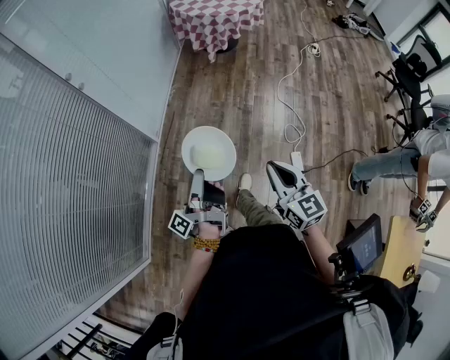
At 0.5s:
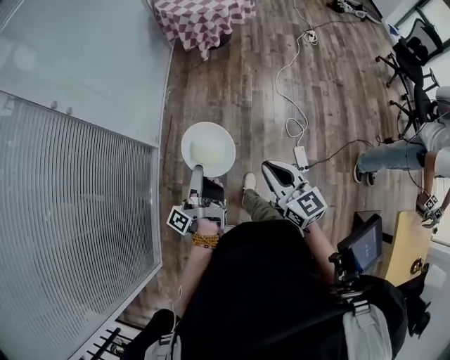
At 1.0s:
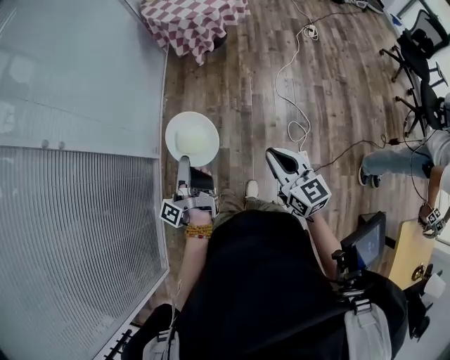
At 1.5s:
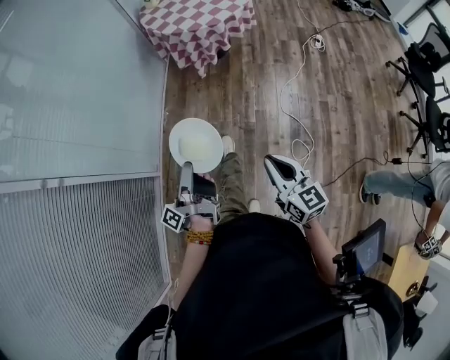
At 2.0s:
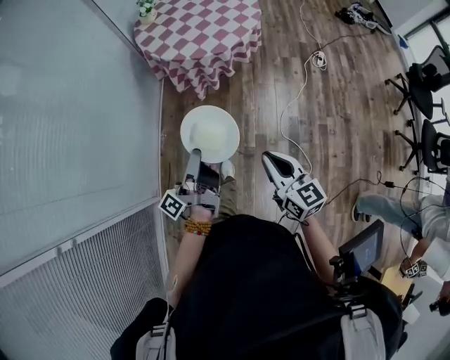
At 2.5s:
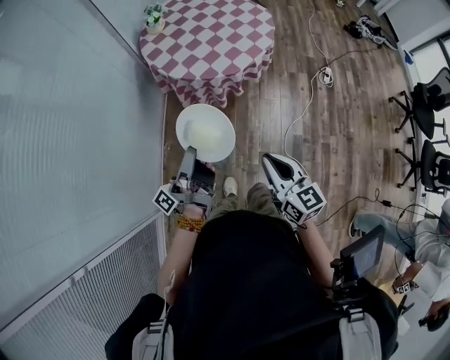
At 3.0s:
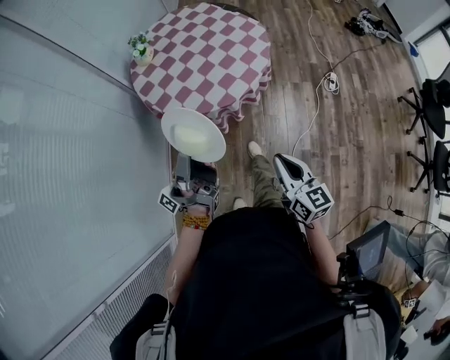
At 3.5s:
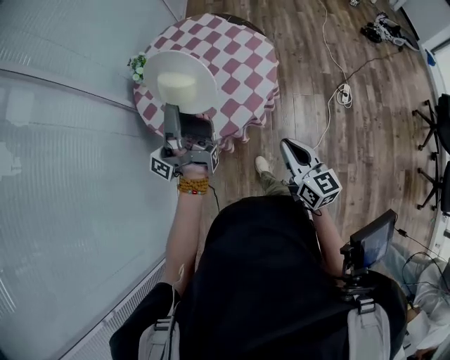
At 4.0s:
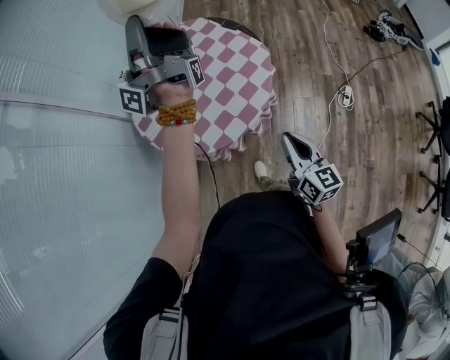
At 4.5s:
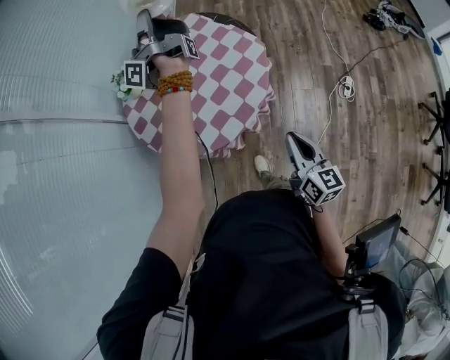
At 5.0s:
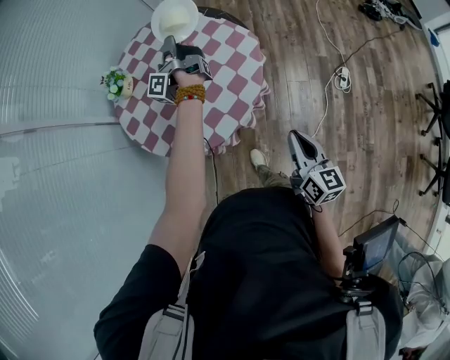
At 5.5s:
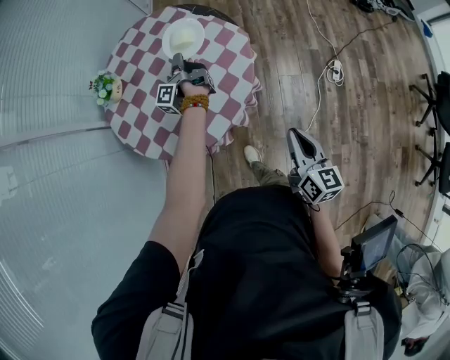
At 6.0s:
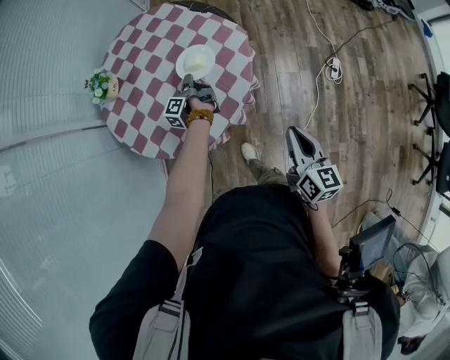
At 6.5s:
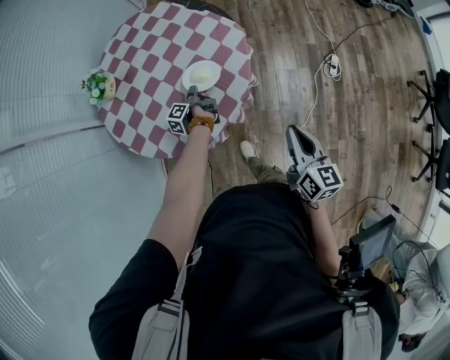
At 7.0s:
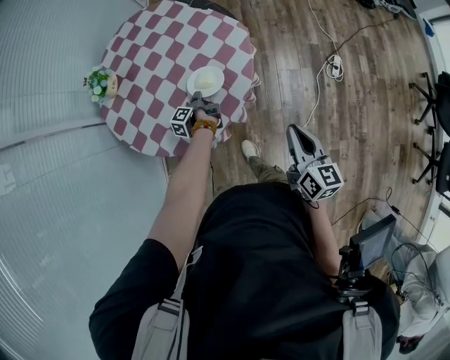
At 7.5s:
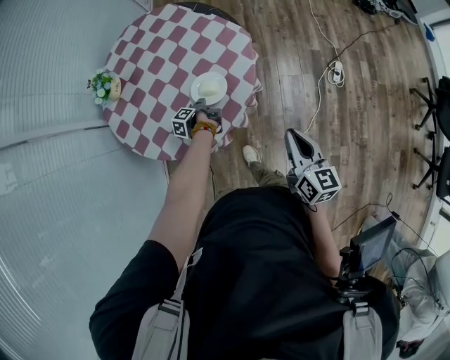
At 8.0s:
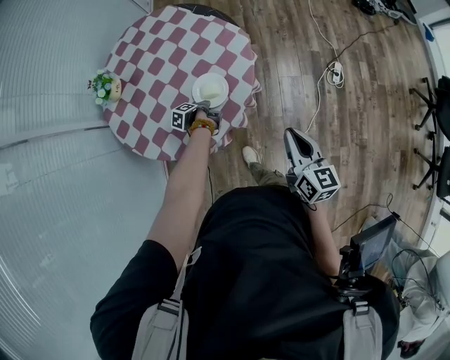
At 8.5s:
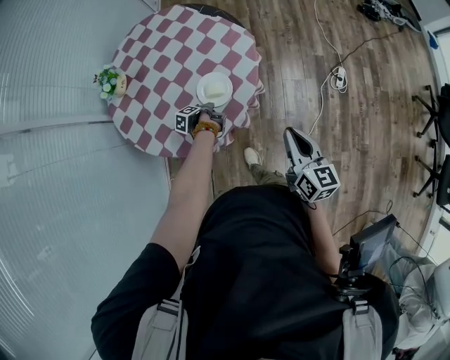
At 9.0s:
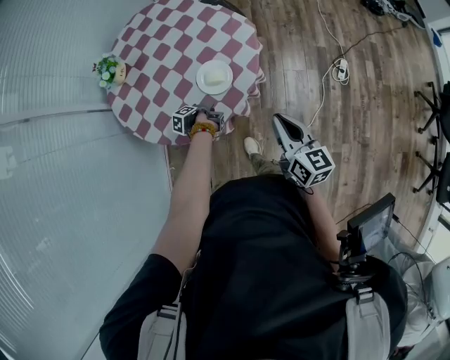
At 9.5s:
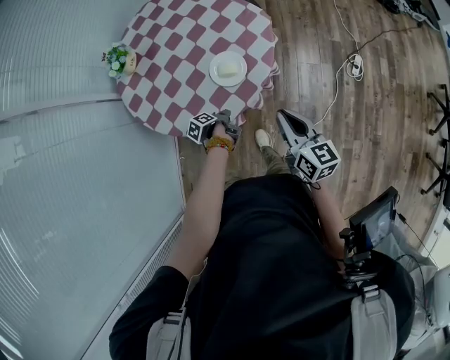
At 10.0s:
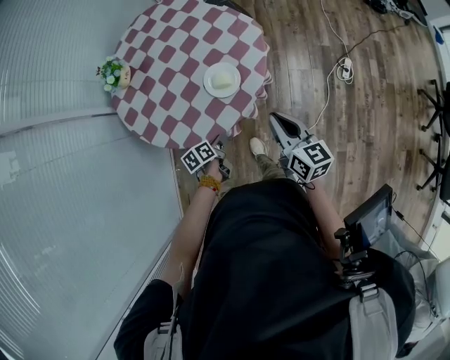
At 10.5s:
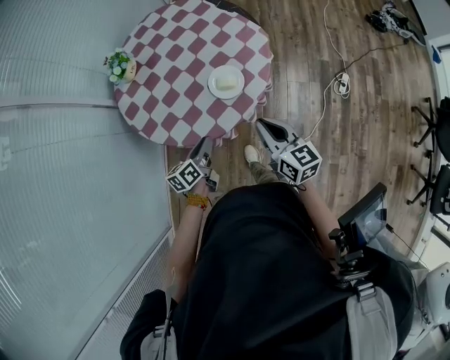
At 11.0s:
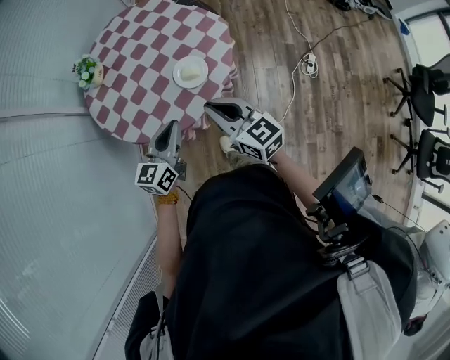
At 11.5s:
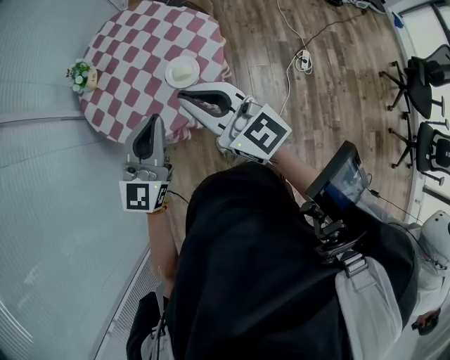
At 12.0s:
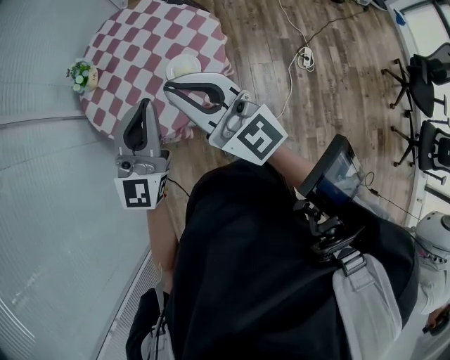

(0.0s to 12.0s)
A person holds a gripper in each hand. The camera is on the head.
0.0s - 2.0s: The right gripper changes place by about 60 cm.
2.0s - 4.0s: The right gripper ends up roughly 60 cm from where it was.
4.0s - 6.0s: The right gripper changes place by some 10 cm.
8.0s - 10.0s: The right gripper ends up some 10 cm from where it was.
10.0s - 12.0s: The right gripper goes about 25 cm upward, and angles its fingers upward, by approximately 30 degrees.

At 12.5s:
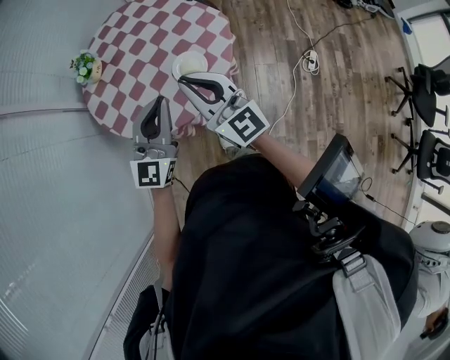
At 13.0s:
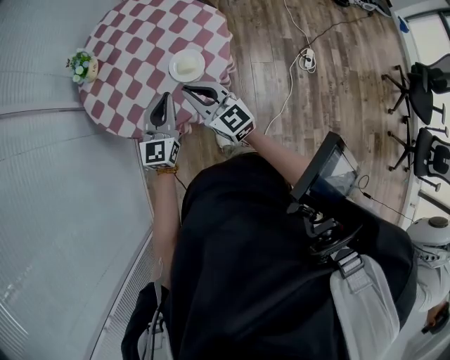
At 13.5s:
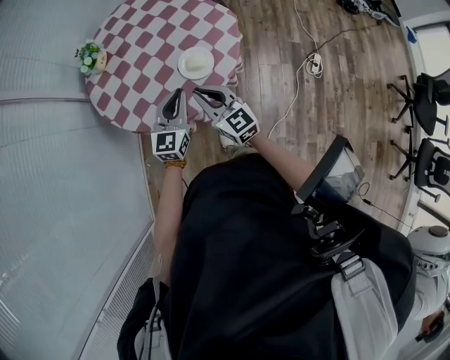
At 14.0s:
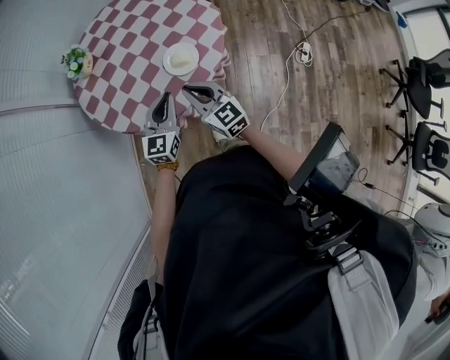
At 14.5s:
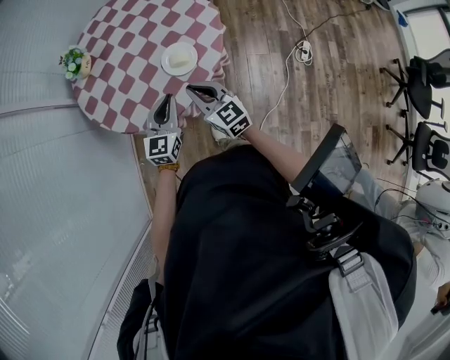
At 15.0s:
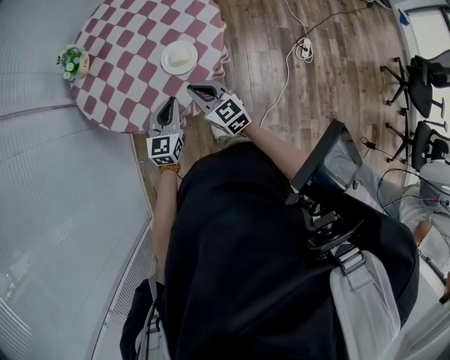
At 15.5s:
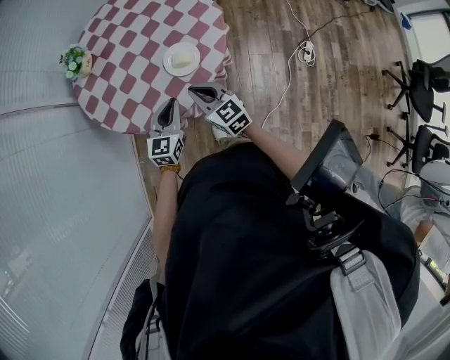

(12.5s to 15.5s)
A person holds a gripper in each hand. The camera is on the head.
12.5s - 14.0s: The right gripper travels downward by approximately 15 cm.

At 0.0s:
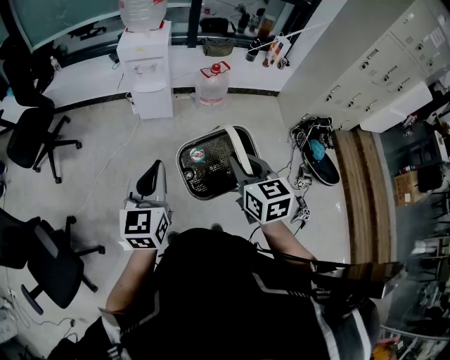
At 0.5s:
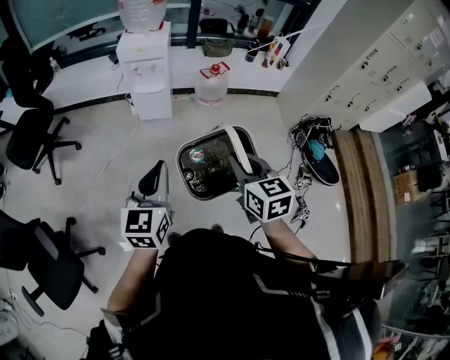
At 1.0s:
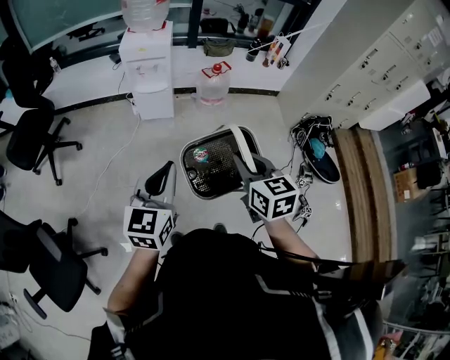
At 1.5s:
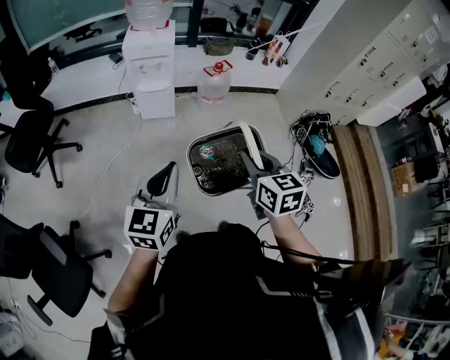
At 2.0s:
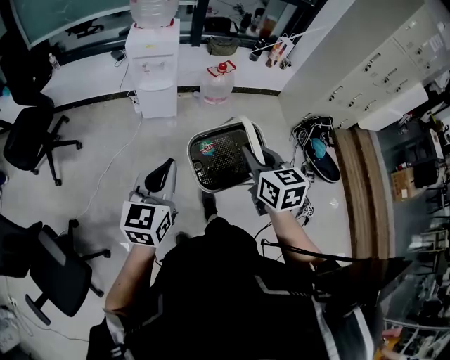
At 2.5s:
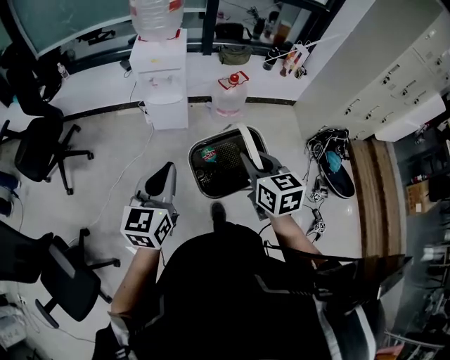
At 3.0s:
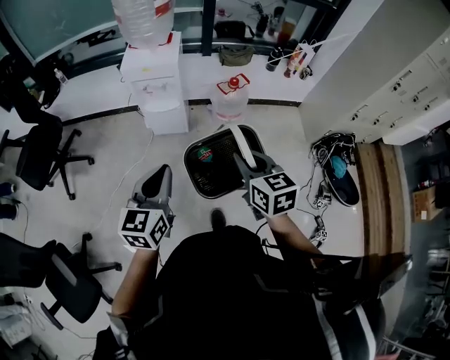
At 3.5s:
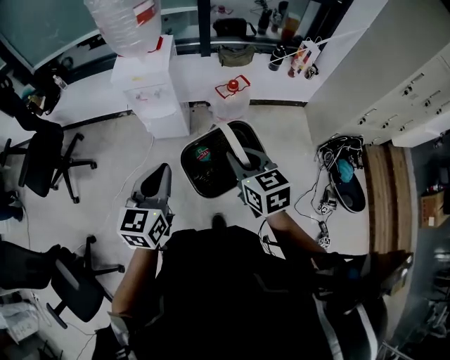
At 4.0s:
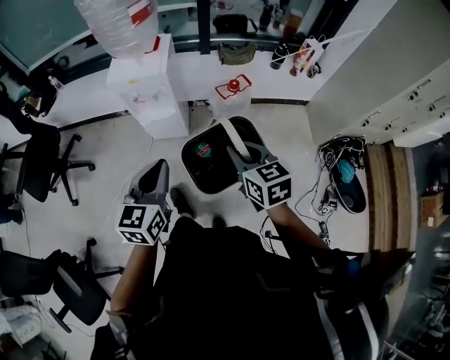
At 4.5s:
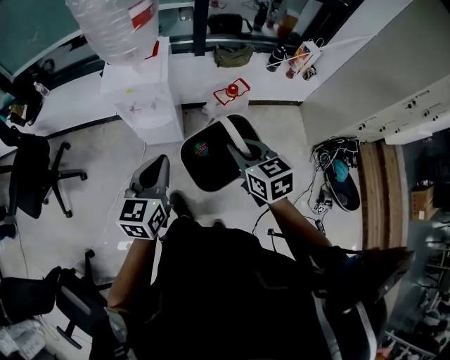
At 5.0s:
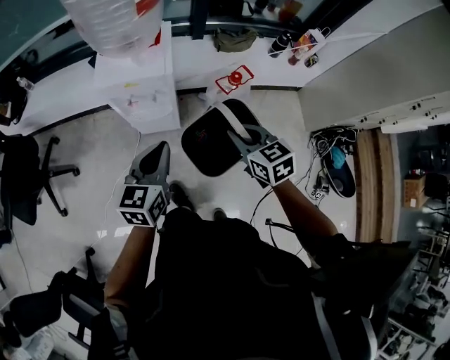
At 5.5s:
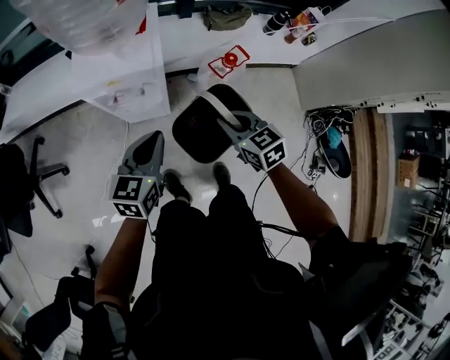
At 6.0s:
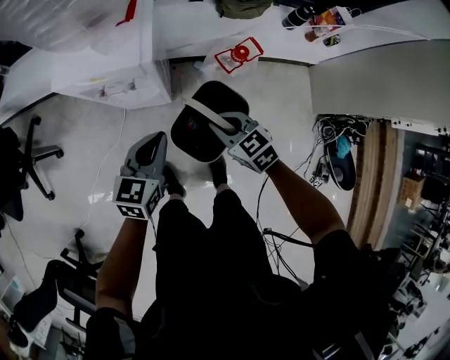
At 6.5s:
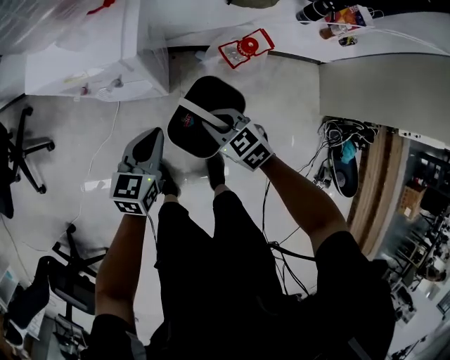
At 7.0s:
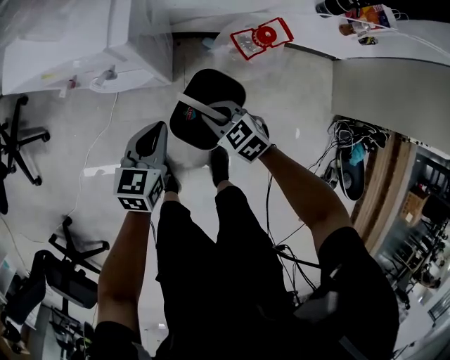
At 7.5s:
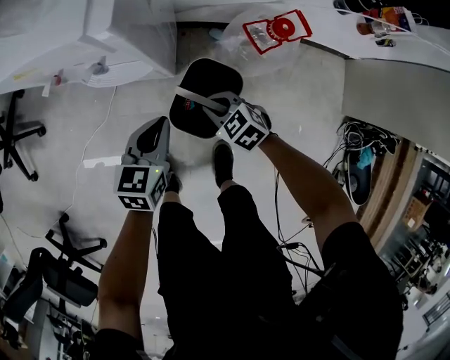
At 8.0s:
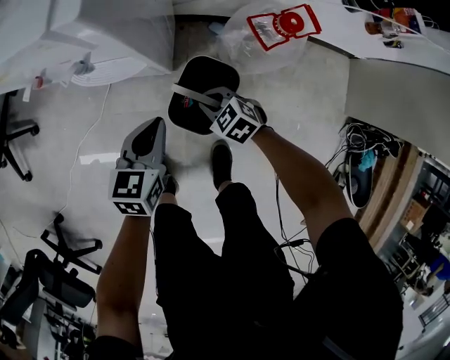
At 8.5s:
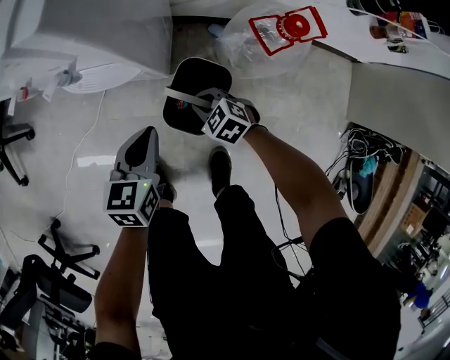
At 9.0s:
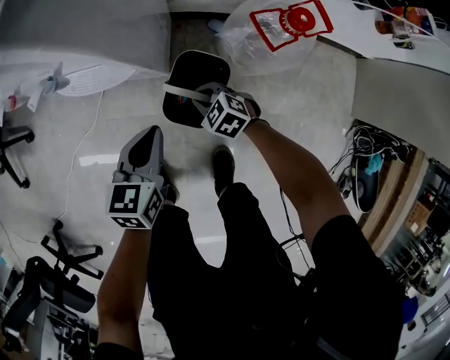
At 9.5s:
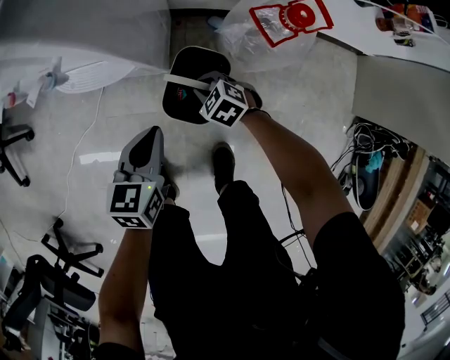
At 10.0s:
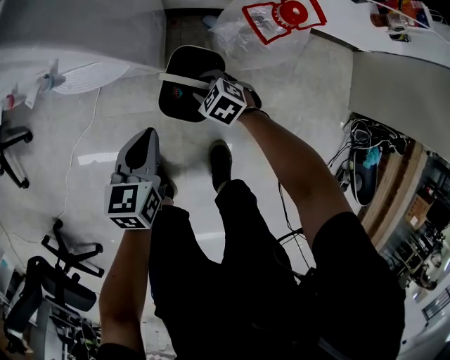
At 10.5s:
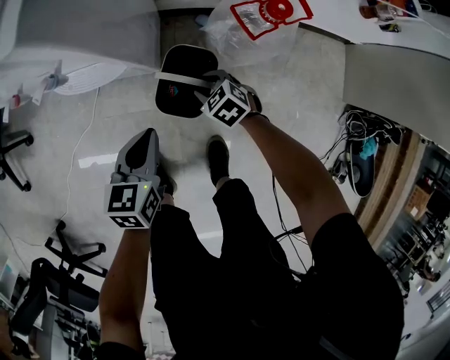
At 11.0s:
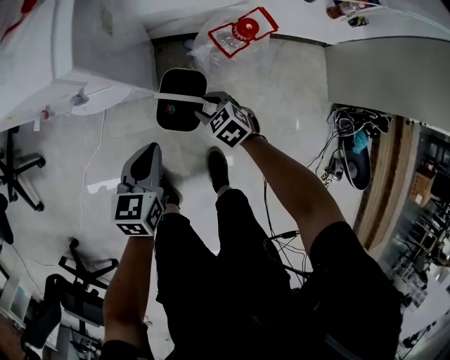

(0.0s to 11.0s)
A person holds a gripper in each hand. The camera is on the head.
0.0s - 2.0s: The grippers both shift to the left by approximately 5 cm.
2.0s - 3.5s: The right gripper moves forward, approximately 25 cm; the left gripper is displaced forward and to the right by about 25 cm.
3.5s - 5.5s: The grippers both shift forward and downward by about 30 cm.
5.5s - 7.5s: The grippers both shift downward by approximately 35 cm. The right gripper changes its angle by about 30 degrees.
7.5s - 9.0s: The right gripper travels downward by some 15 cm, while the left gripper travels downward by approximately 10 cm.
9.0s - 11.0s: The left gripper moves upward, about 10 cm. Meanwhile the right gripper shifts approximately 15 cm upward and to the right, and opens up.

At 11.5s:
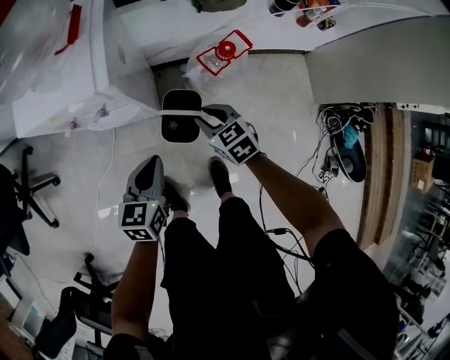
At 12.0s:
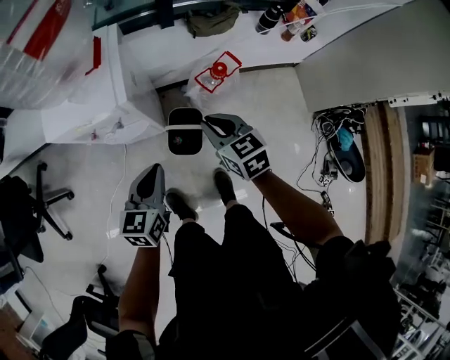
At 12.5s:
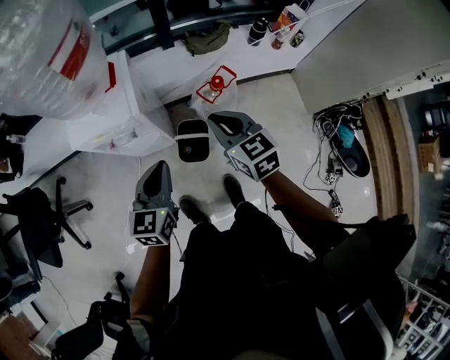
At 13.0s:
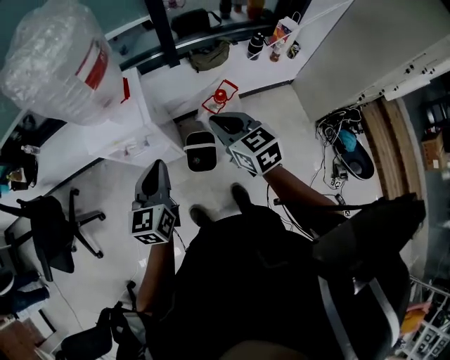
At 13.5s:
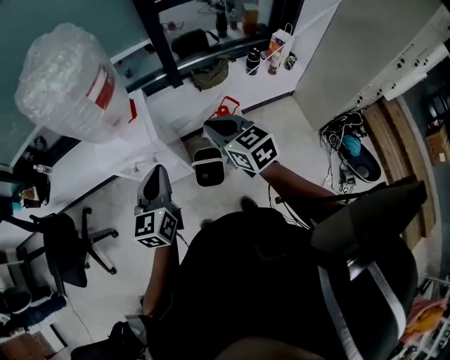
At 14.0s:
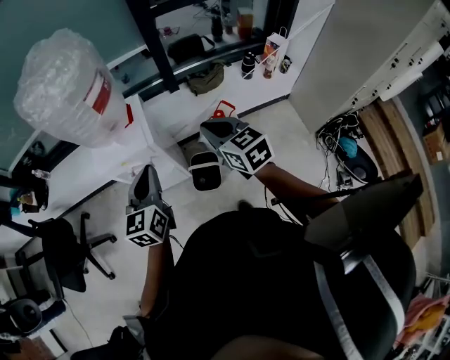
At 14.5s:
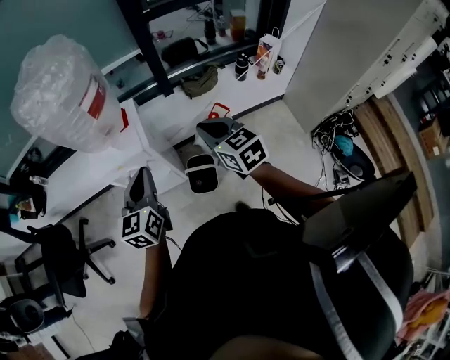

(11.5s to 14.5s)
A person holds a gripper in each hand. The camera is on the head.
11.5s - 13.0s: Both grippers move upward, some 30 cm. The right gripper turns by roughly 20 degrees, and closes.
13.0s - 14.5s: The left gripper goes some 5 cm upward. Meanwhile the right gripper moves approximately 5 cm.
